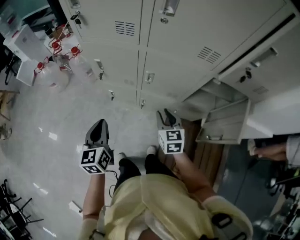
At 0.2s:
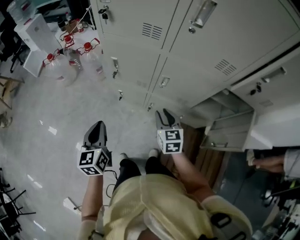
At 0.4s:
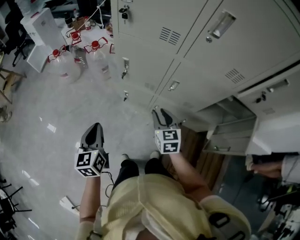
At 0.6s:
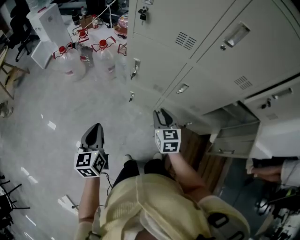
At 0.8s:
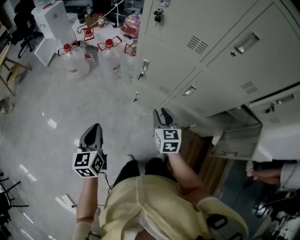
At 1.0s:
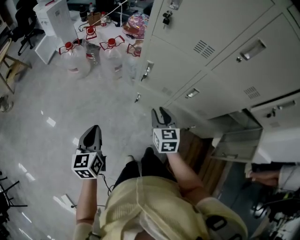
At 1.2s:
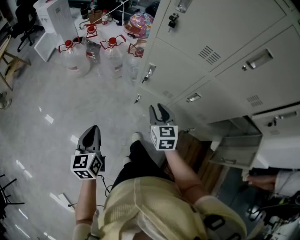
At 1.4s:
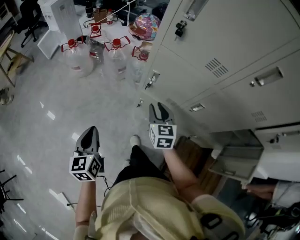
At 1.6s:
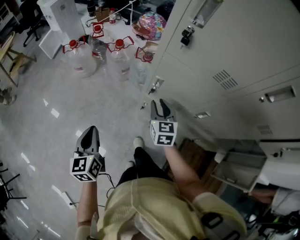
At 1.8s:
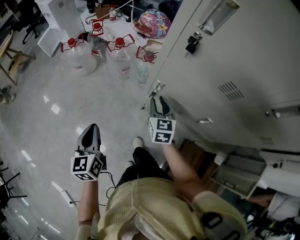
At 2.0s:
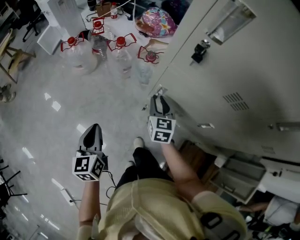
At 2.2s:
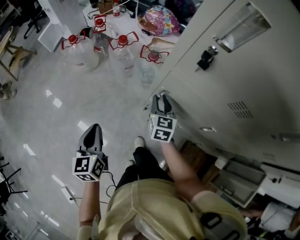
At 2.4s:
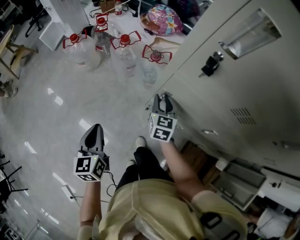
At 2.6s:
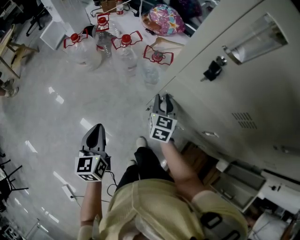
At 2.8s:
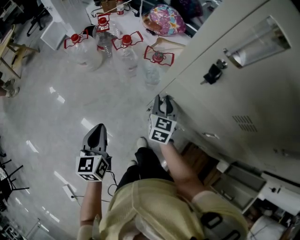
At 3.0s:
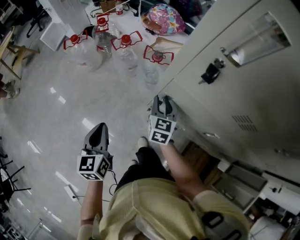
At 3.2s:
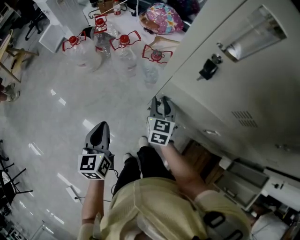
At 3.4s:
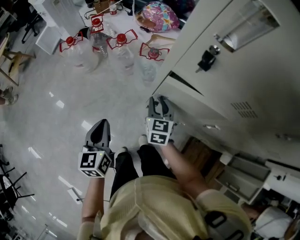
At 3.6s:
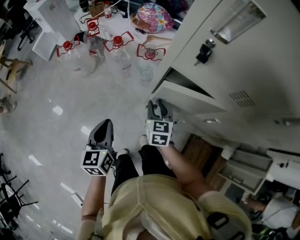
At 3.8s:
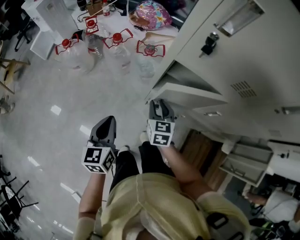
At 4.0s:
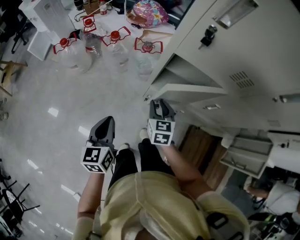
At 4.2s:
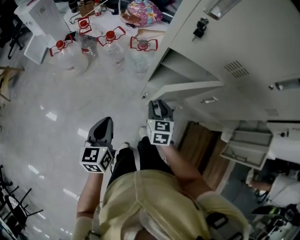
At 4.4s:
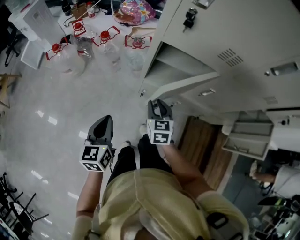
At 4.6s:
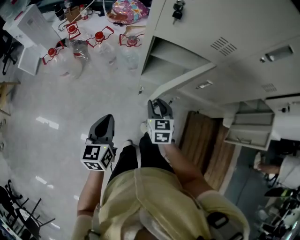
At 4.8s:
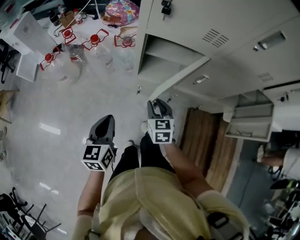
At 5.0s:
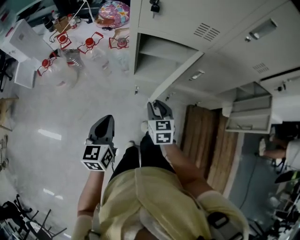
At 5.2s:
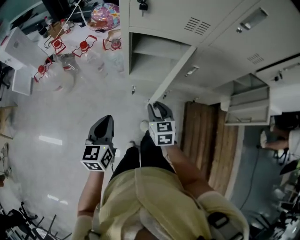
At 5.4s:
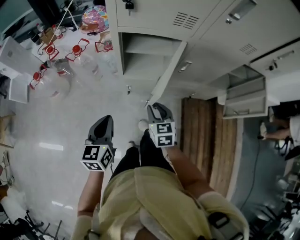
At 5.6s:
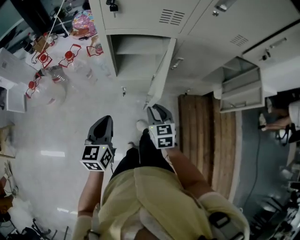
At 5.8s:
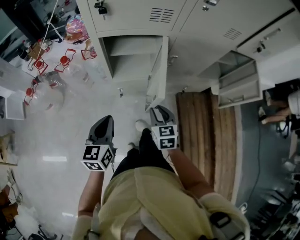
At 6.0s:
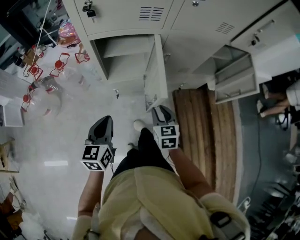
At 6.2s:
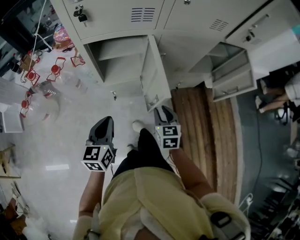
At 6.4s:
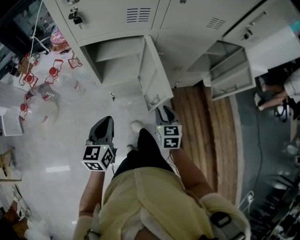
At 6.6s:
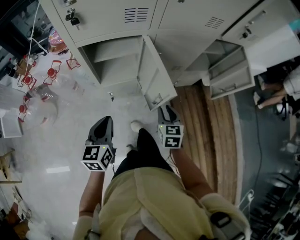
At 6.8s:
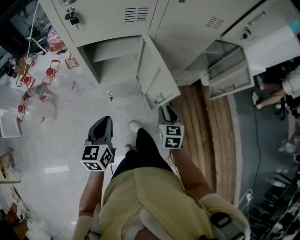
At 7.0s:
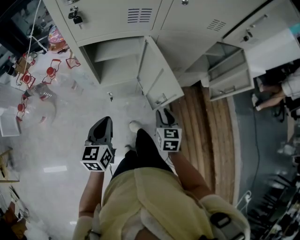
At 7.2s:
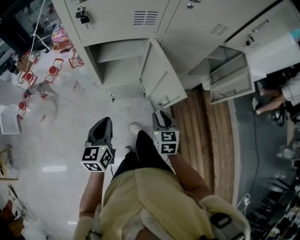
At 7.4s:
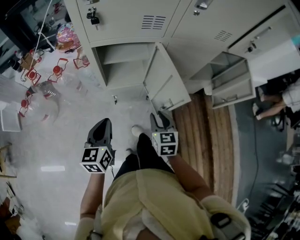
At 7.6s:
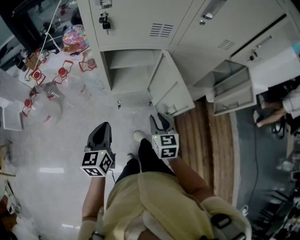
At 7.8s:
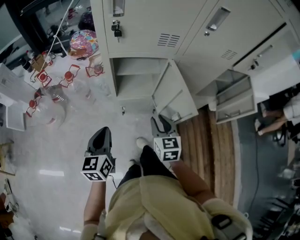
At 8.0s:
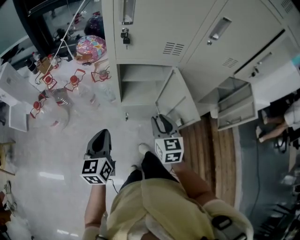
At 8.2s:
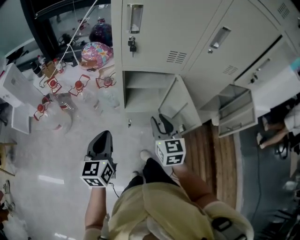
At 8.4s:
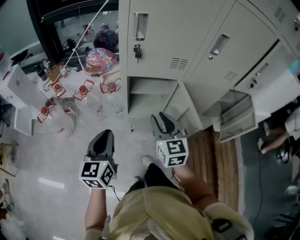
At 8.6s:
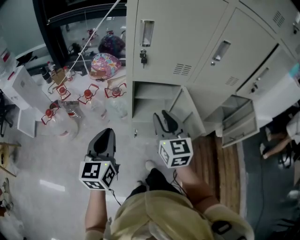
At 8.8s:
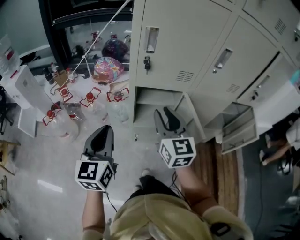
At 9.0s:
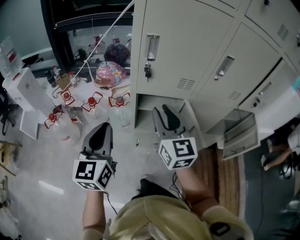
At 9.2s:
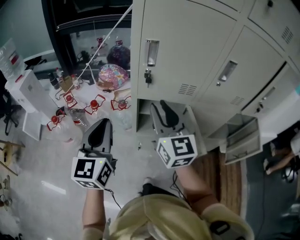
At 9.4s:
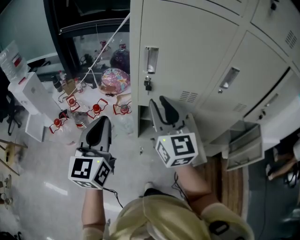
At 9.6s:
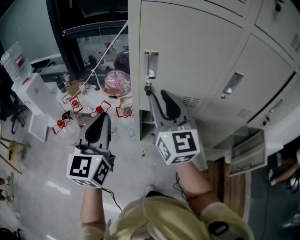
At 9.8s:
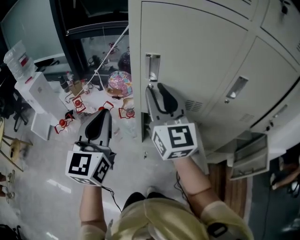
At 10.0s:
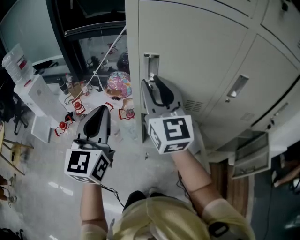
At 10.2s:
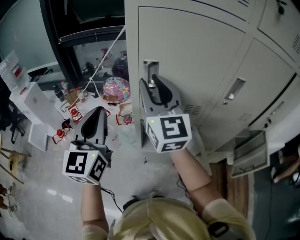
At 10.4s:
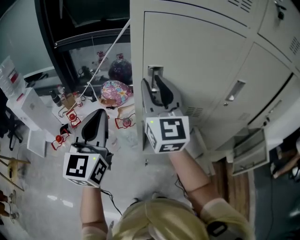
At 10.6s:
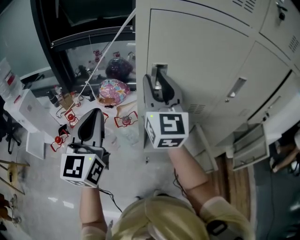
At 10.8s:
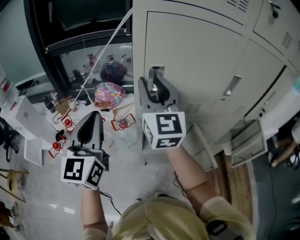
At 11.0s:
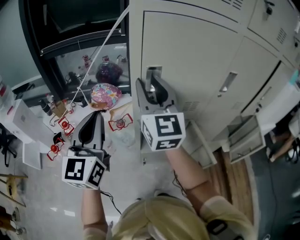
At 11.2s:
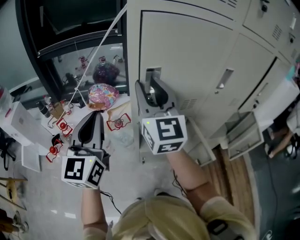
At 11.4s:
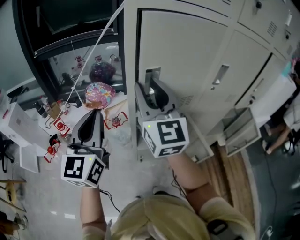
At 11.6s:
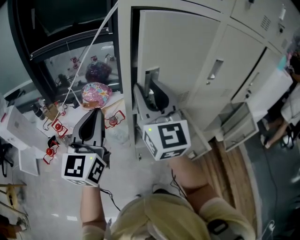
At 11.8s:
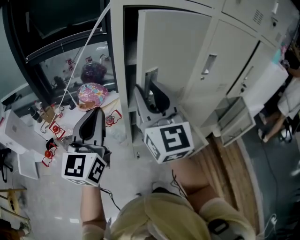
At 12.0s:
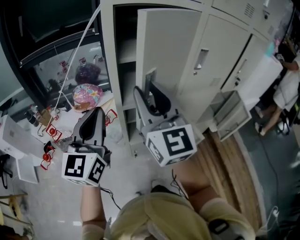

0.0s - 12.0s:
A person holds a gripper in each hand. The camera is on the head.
0.0s - 1.6s: The left gripper moves to the left, approximately 25 cm, while the right gripper travels to the left and forward by approximately 35 cm.
1.6s - 3.0s: Both grippers move forward, some 10 cm.
3.0s - 4.4s: The left gripper moves backward, roughly 5 cm, and changes its angle by approximately 20 degrees. Meanwhile the right gripper is displaced backward by about 15 cm.
4.4s - 6.0s: The left gripper travels to the right by some 10 cm, and swivels approximately 30 degrees. The right gripper shifts some 20 cm to the right and backward, and rotates roughly 20 degrees.
6.0s - 7.6s: The right gripper moves approximately 5 cm to the right and comes back.
7.6s - 9.0s: The left gripper travels upward by roughly 20 cm, and turns by some 20 degrees. Meanwhile the right gripper heads upward and to the left, covering approximately 30 cm, and angles its fingers upward, by some 30 degrees.
9.0s - 10.4s: The right gripper travels upward and forward by some 20 cm; the left gripper travels forward and upward by about 15 cm.
10.4s - 12.0s: The right gripper heads backward, covering roughly 10 cm.

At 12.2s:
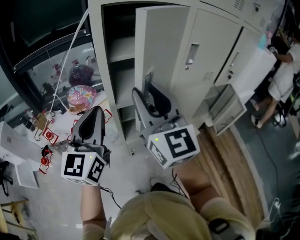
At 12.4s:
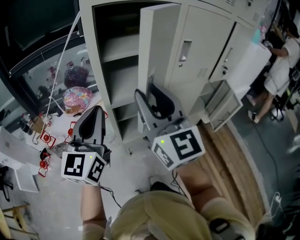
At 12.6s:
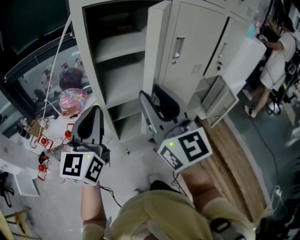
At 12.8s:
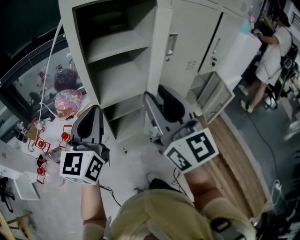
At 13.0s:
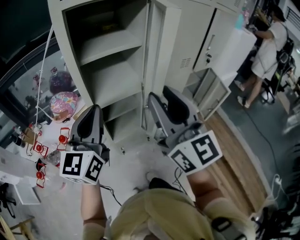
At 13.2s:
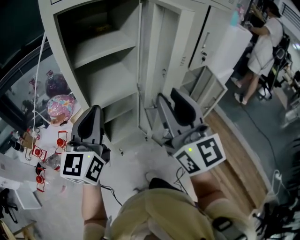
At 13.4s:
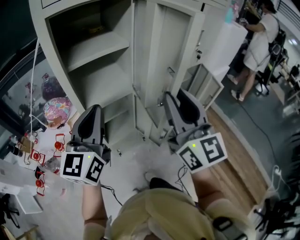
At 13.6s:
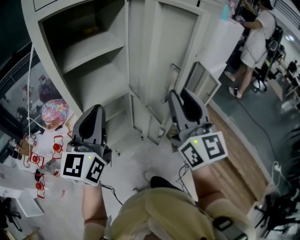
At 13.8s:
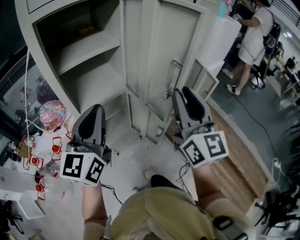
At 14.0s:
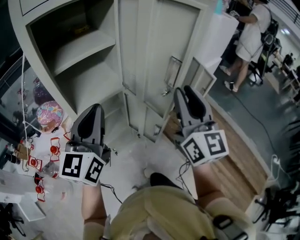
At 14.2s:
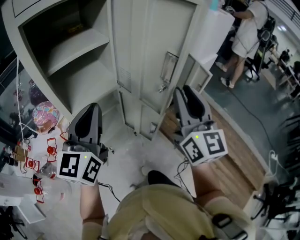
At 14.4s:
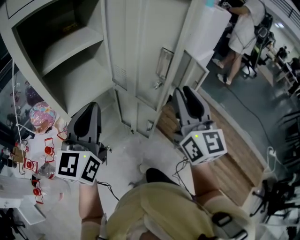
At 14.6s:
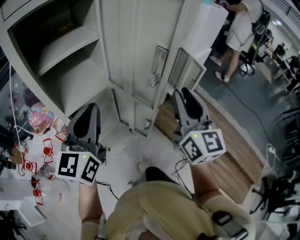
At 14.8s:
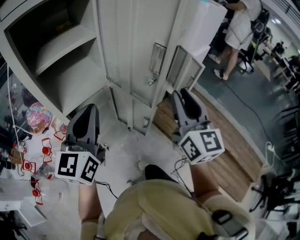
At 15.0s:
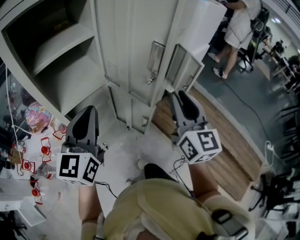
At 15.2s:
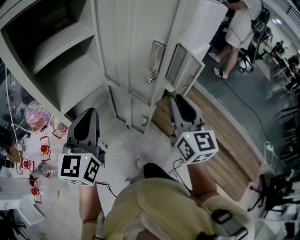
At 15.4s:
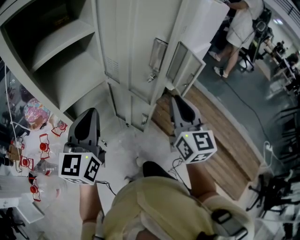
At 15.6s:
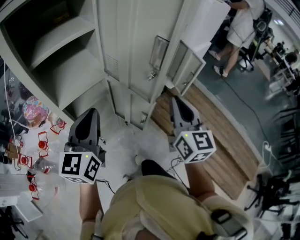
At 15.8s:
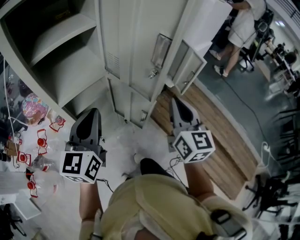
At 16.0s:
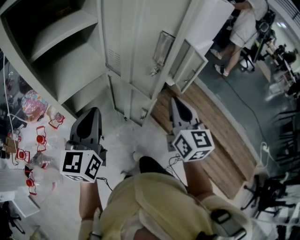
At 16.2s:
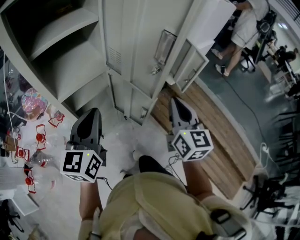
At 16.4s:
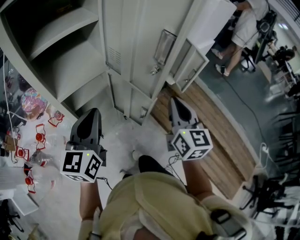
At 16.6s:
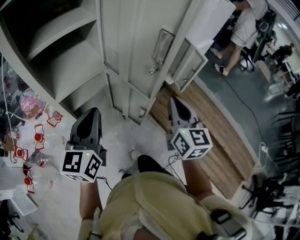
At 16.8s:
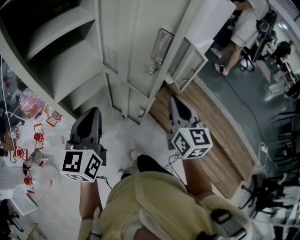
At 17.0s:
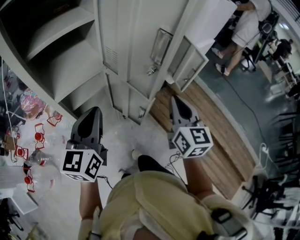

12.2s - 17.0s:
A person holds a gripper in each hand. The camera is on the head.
12.2s - 13.8s: The right gripper is displaced to the right by about 25 cm, and swivels roughly 30 degrees; the left gripper goes approximately 15 cm to the right, and turns by about 20 degrees.
13.8s - 15.4s: The left gripper moves downward, some 5 cm. Meanwhile the right gripper shifts approximately 15 cm downward and to the right.
15.4s - 17.0s: The right gripper ends up approximately 5 cm from where it was.

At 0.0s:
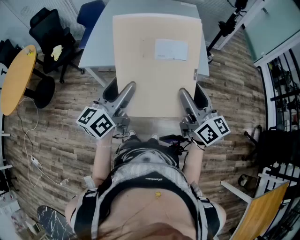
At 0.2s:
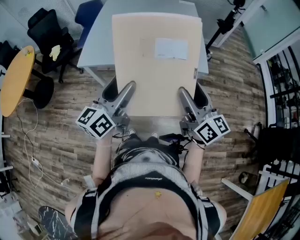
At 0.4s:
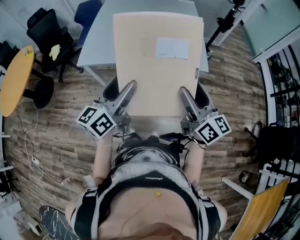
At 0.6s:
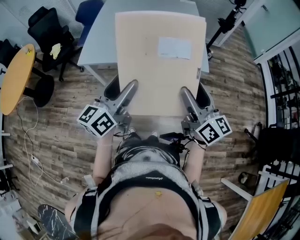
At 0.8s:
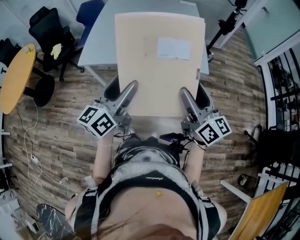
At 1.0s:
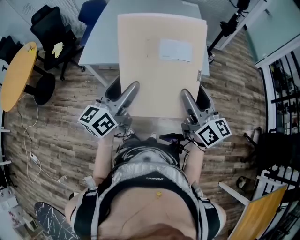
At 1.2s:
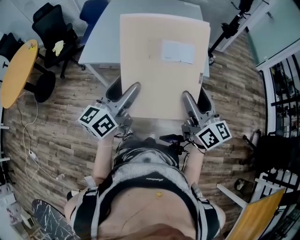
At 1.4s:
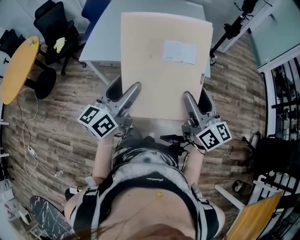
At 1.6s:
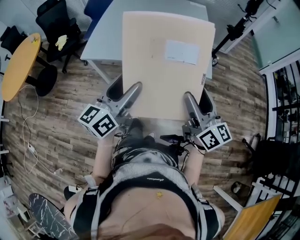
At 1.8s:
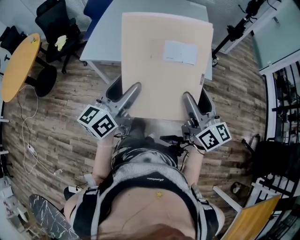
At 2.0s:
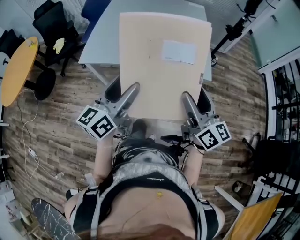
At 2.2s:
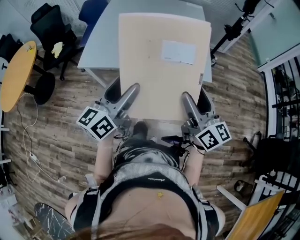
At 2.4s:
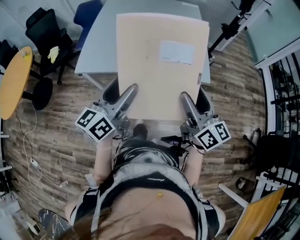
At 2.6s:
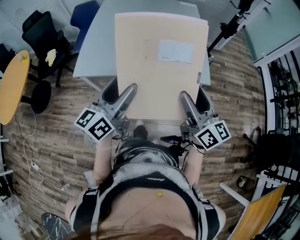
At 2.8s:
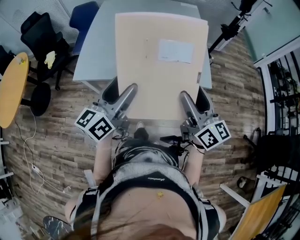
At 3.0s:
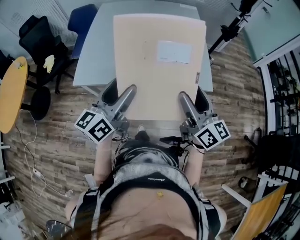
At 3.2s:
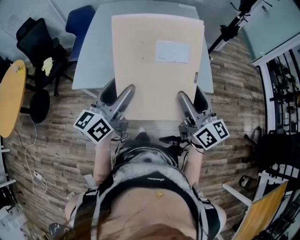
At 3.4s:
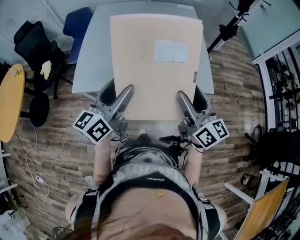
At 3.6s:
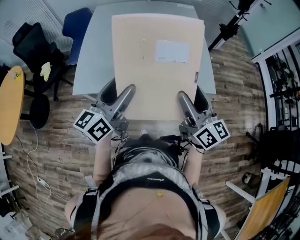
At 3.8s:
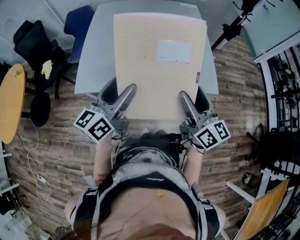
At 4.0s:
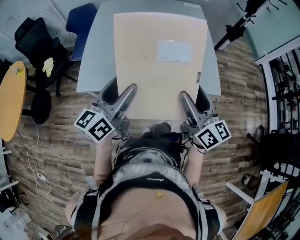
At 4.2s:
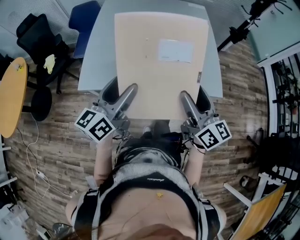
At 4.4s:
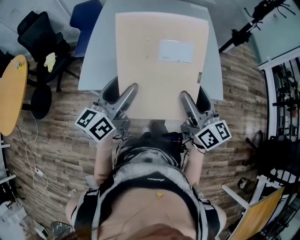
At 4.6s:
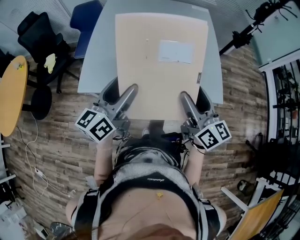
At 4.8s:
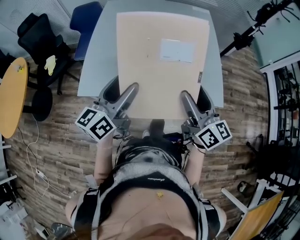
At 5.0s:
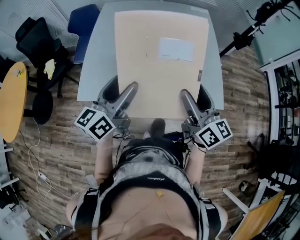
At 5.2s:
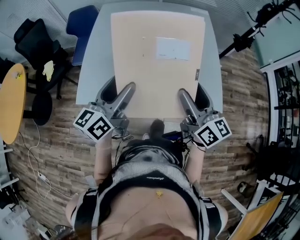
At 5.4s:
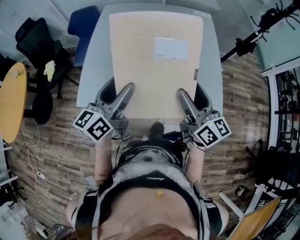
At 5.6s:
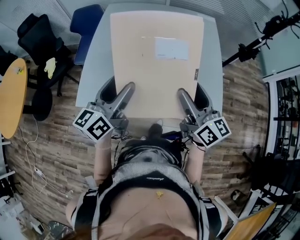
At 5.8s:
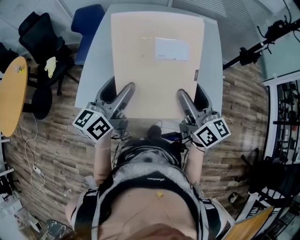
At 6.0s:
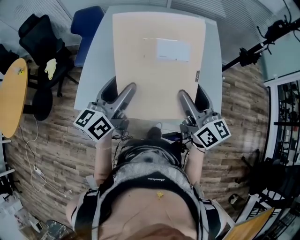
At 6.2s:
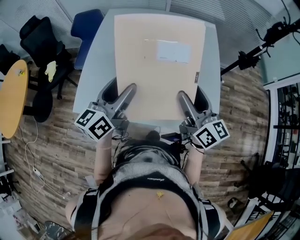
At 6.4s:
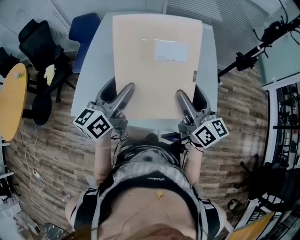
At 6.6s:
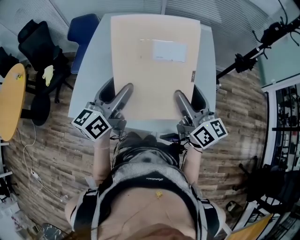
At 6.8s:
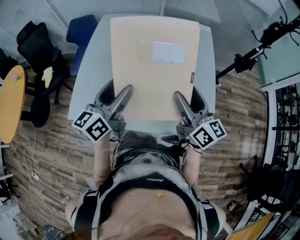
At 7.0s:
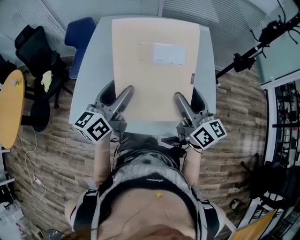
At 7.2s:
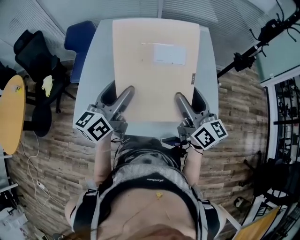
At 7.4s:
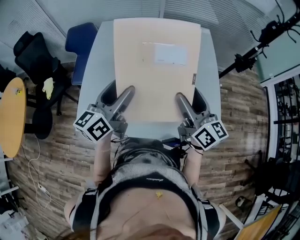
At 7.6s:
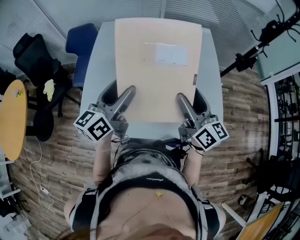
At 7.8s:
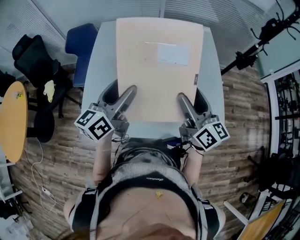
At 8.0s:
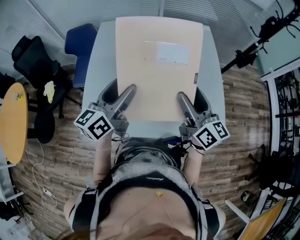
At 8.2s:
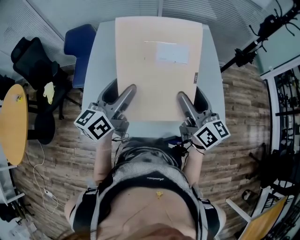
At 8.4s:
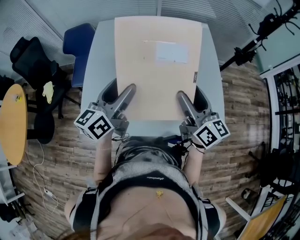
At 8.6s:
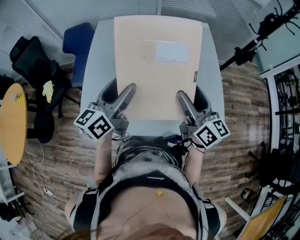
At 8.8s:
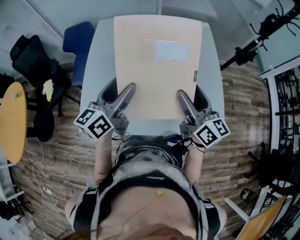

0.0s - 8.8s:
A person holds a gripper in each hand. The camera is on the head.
0.0s - 1.4s: The grippers make only small movements.
1.4s - 3.0s: The left gripper travels forward by roughly 15 cm. The right gripper shifts about 15 cm forward and to the left.
3.0s - 4.4s: The two grippers go approximately 10 cm forward and to the left.
4.4s - 5.8s: Both grippers move forward, roughly 15 cm.
5.8s - 7.4s: Both grippers travel together forward, some 10 cm.
7.4s - 8.8s: The grippers move only a little.
